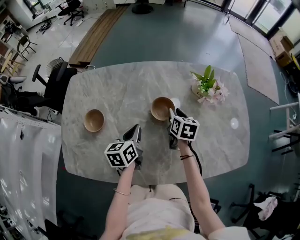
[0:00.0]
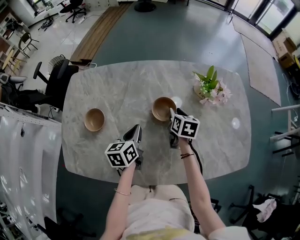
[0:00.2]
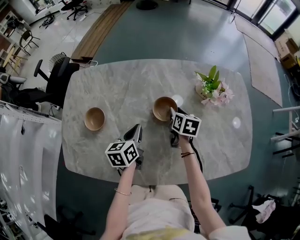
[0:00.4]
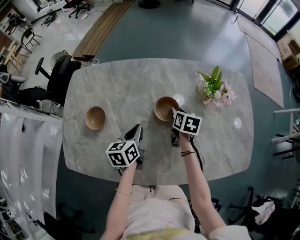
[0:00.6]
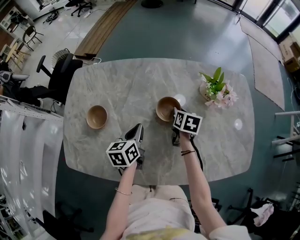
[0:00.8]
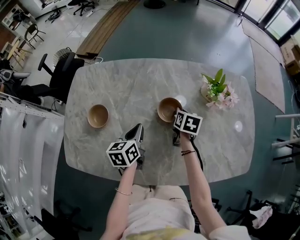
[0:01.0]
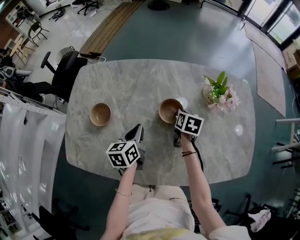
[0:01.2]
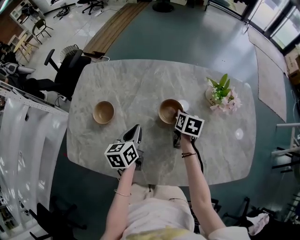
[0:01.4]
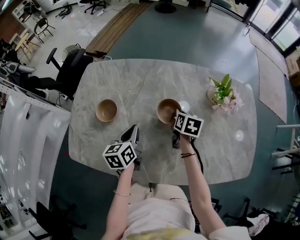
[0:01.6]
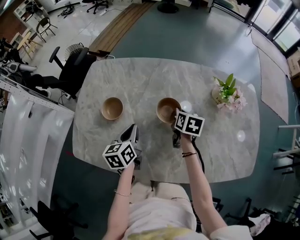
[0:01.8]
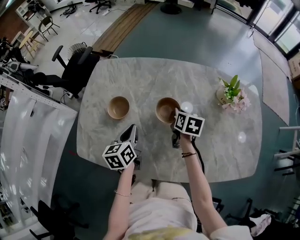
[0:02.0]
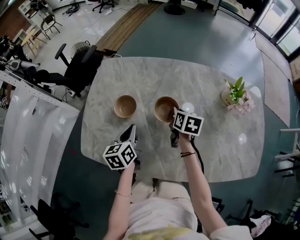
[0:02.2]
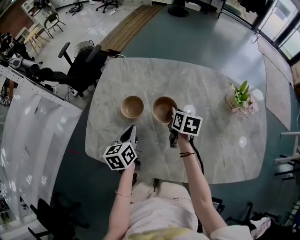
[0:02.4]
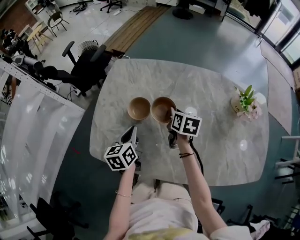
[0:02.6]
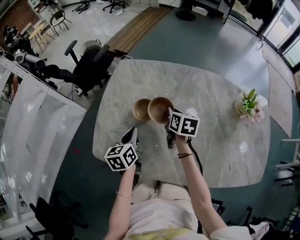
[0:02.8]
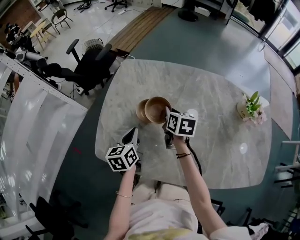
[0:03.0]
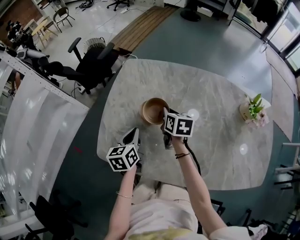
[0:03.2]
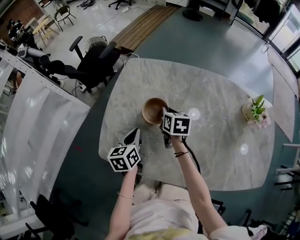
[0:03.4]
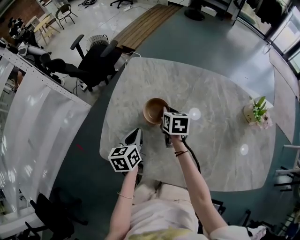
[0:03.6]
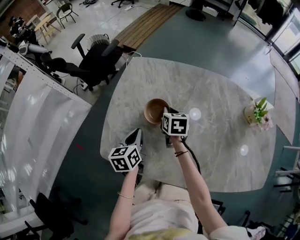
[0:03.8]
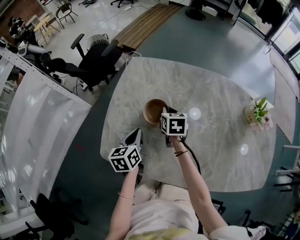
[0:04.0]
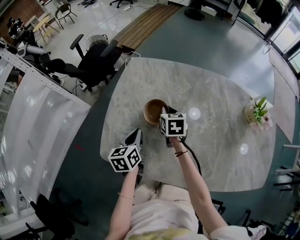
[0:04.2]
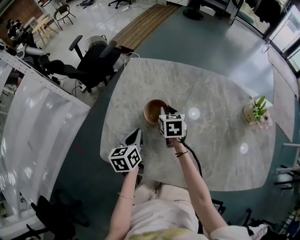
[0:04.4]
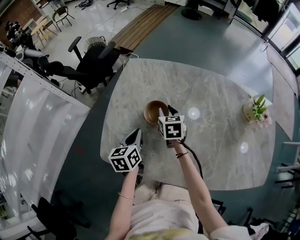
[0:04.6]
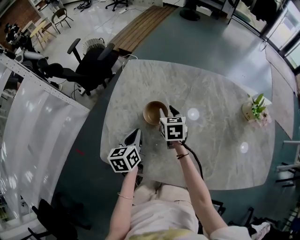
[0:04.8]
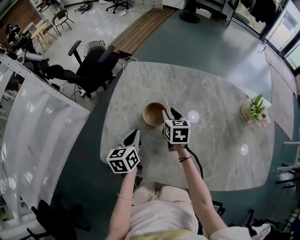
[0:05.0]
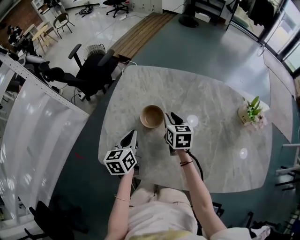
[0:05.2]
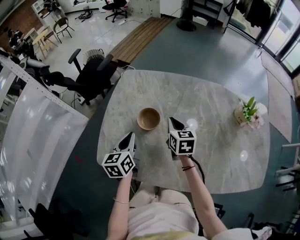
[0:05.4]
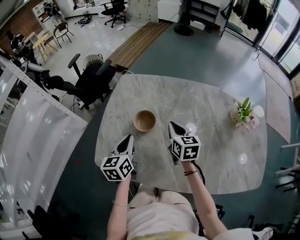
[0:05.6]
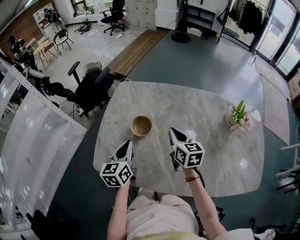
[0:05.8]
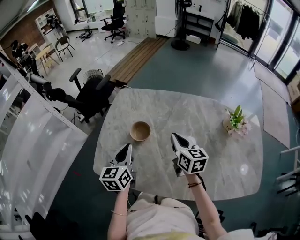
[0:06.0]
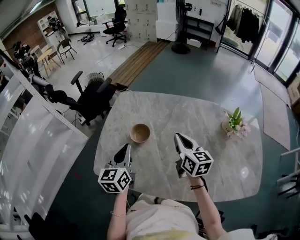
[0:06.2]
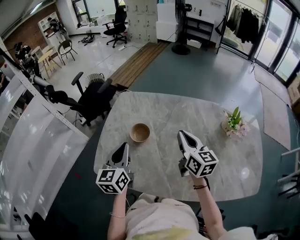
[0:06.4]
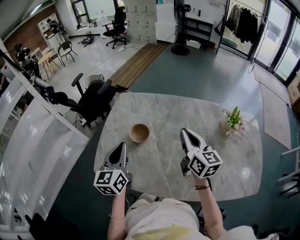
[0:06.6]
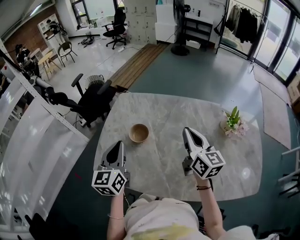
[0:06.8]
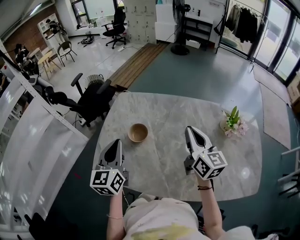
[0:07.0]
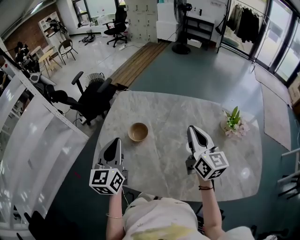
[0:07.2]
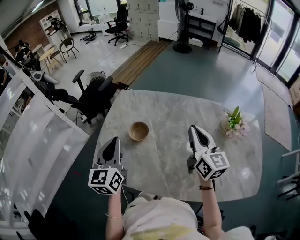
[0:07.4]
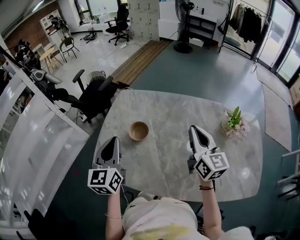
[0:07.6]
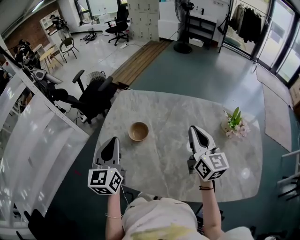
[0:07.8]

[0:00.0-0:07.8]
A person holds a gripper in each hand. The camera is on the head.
0:00.0 to 0:01.6: The right gripper closes. The left gripper moves to the left, approximately 5 cm.
0:01.6 to 0:03.2: Both grippers move to the left, approximately 25 cm.
0:03.2 to 0:04.6: The right gripper opens.
0:04.6 to 0:06.2: The right gripper travels upward, to the right and backward by about 25 cm, turns by some 30 degrees, and closes. Meanwhile the left gripper moves upward, some 15 cm, and rotates some 20 degrees.
0:06.2 to 0:07.8: The right gripper shifts approximately 10 cm upward and to the right; the left gripper goes roughly 10 cm upward.

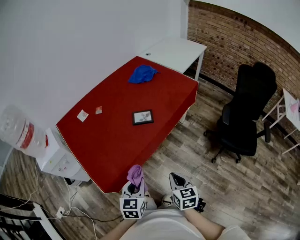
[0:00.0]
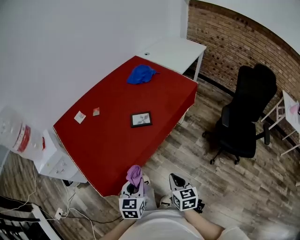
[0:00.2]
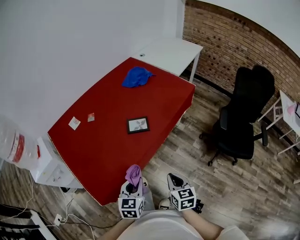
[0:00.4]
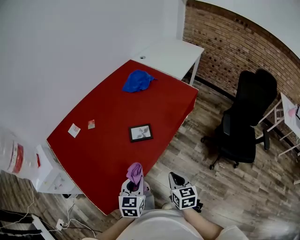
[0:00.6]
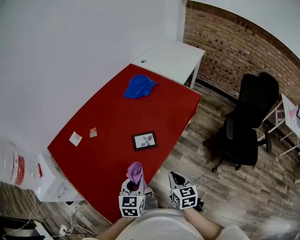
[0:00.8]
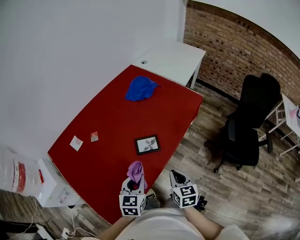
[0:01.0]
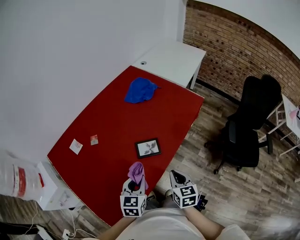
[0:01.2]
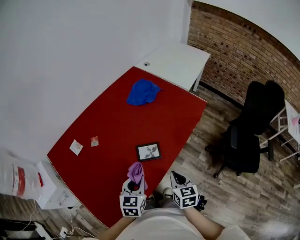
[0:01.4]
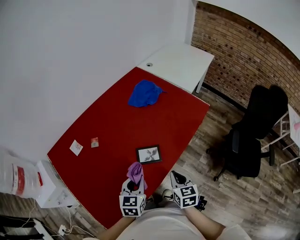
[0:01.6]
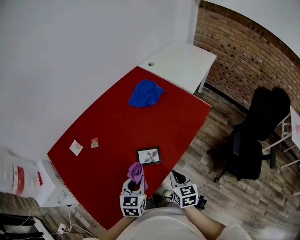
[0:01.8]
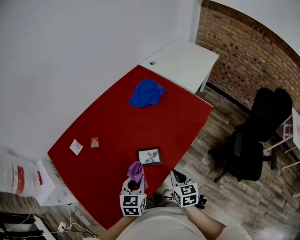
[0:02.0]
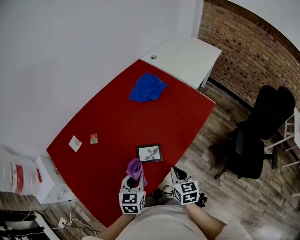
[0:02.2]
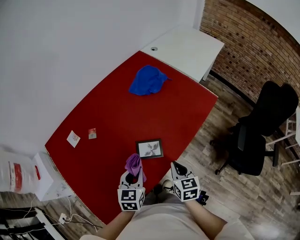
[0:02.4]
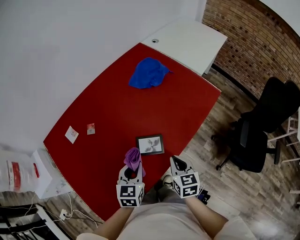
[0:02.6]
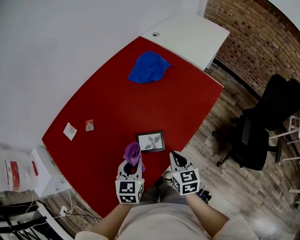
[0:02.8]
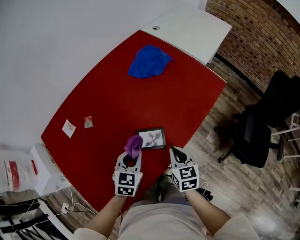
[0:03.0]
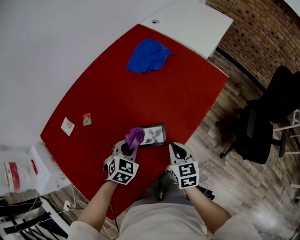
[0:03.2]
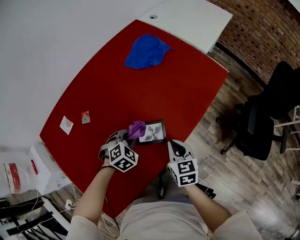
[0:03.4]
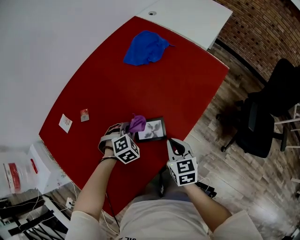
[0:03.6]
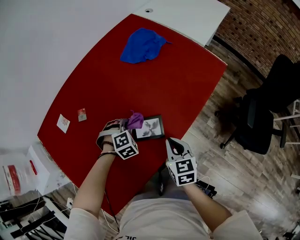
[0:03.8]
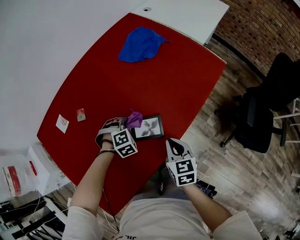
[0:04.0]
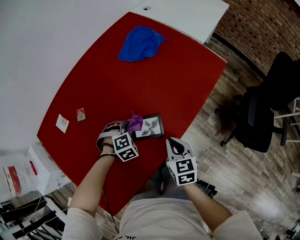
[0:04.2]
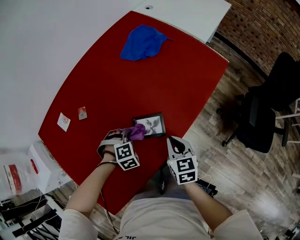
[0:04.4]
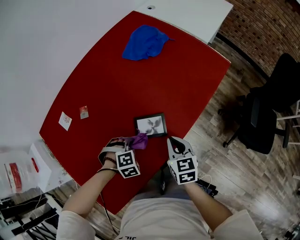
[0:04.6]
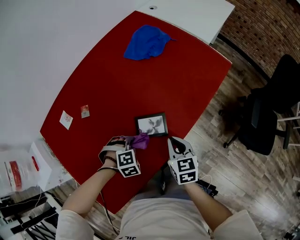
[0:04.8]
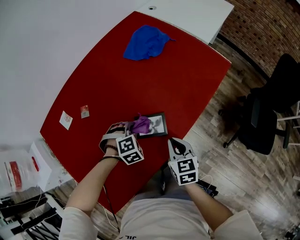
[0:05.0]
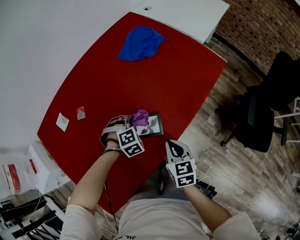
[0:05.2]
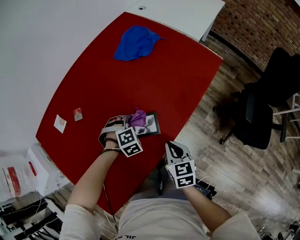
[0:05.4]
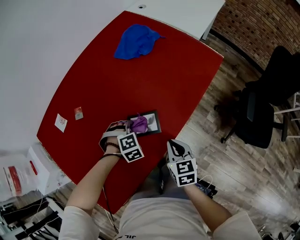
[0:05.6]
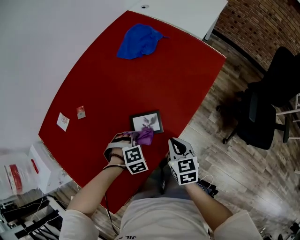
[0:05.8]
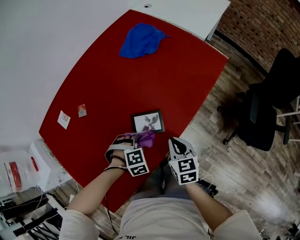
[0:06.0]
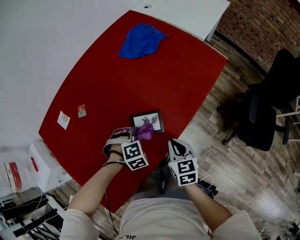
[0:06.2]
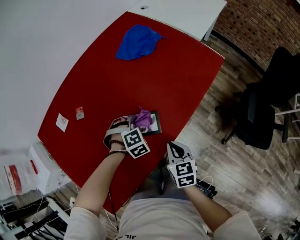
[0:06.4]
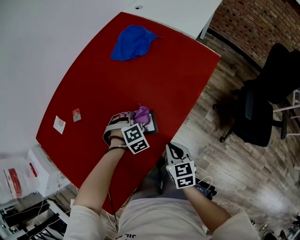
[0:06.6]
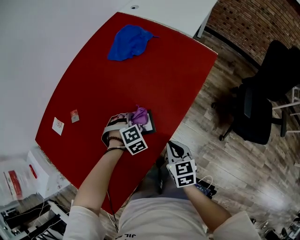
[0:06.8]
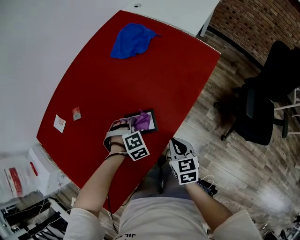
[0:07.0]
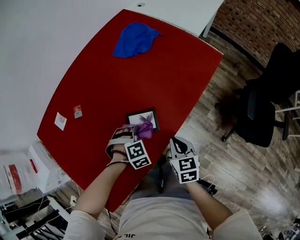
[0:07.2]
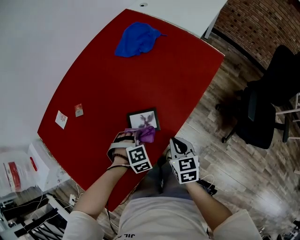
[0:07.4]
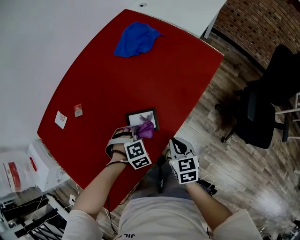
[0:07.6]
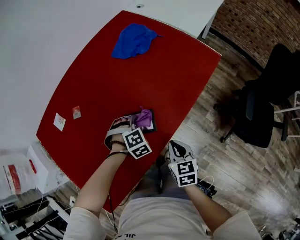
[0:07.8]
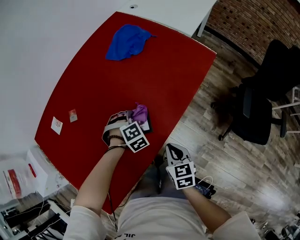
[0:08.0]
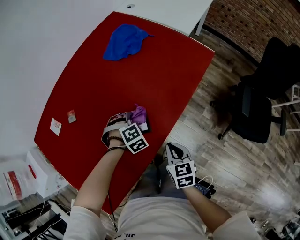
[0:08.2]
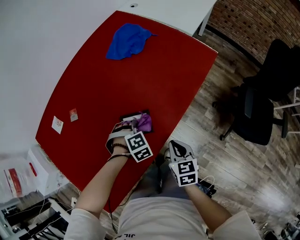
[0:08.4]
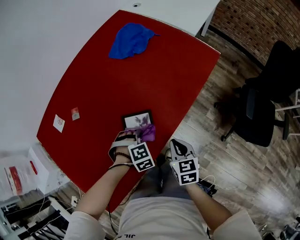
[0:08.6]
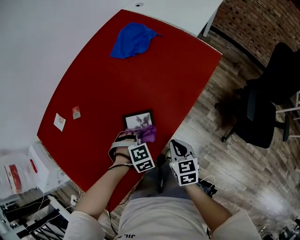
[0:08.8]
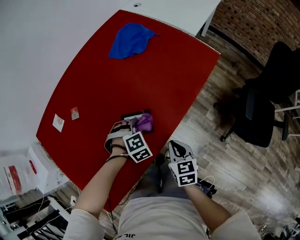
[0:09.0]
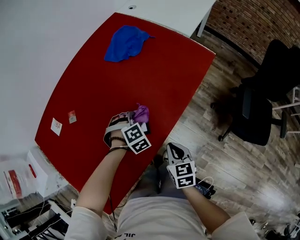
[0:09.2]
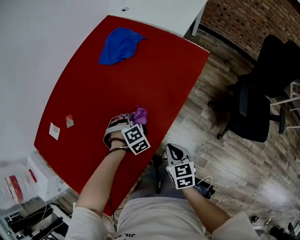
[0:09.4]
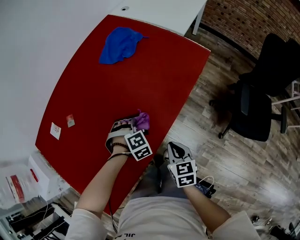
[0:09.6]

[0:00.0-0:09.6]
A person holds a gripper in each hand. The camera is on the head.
0:00.0 to 0:01.6: Both grippers travel together forward, about 30 cm.
0:01.6 to 0:03.2: The grippers both shift forward and downward by approximately 15 cm. The left gripper rotates about 40 degrees.
0:03.2 to 0:04.8: The left gripper goes roughly 10 cm downward, and rotates approximately 50 degrees.
0:04.8 to 0:06.4: The left gripper moves some 10 cm.
0:06.4 to 0:08.0: The left gripper travels backward and back again, some 10 cm each way.

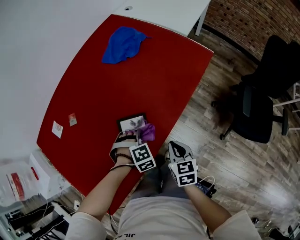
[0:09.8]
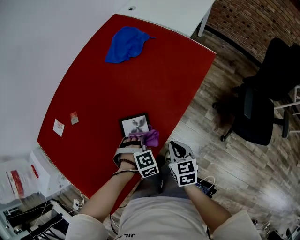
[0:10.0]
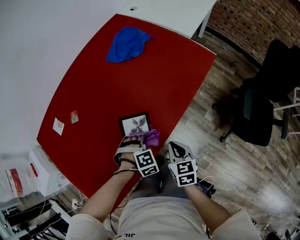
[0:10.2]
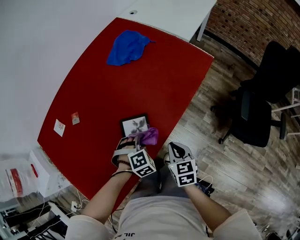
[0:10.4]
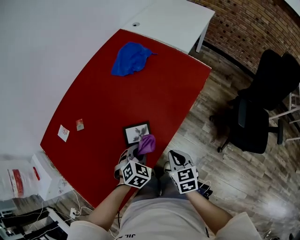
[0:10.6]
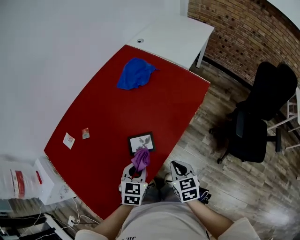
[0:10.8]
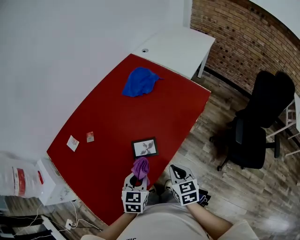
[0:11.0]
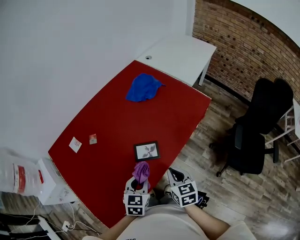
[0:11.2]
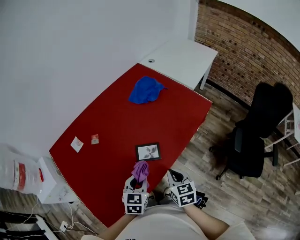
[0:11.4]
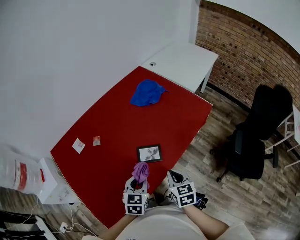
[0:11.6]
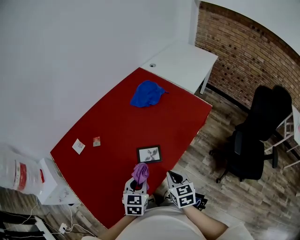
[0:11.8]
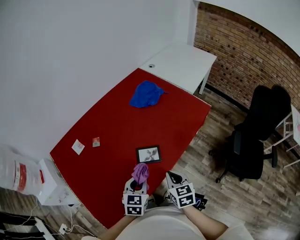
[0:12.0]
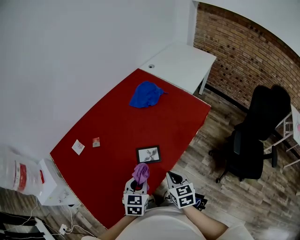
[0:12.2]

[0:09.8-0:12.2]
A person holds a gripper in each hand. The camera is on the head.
0:09.8 to 0:11.0: The left gripper is displaced upward and backward by approximately 20 cm, and twists some 70 degrees counterclockwise, seen from behind. The right gripper goes about 10 cm upward.
0:11.0 to 0:12.2: The grippers move only a little.

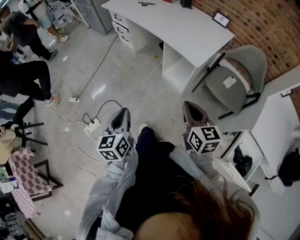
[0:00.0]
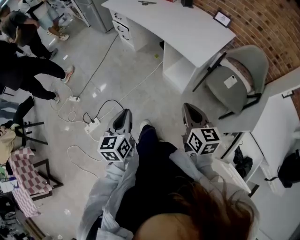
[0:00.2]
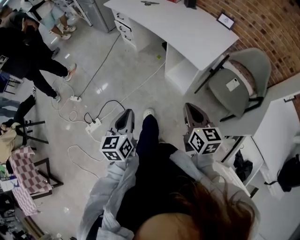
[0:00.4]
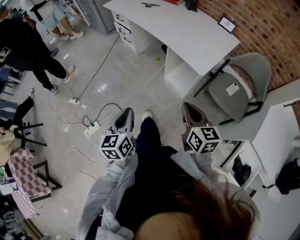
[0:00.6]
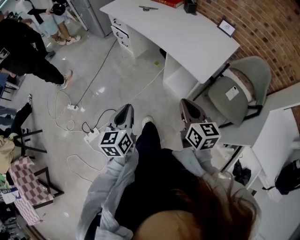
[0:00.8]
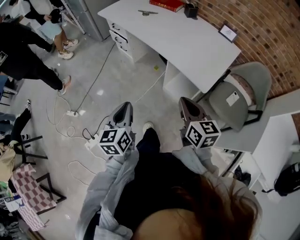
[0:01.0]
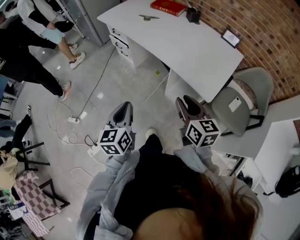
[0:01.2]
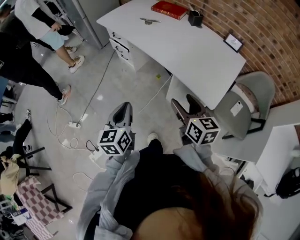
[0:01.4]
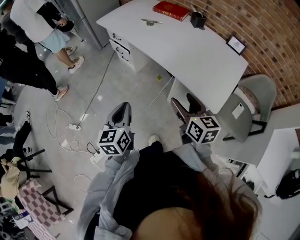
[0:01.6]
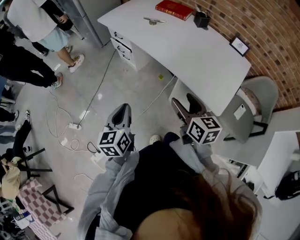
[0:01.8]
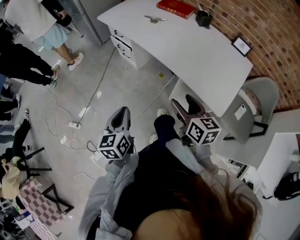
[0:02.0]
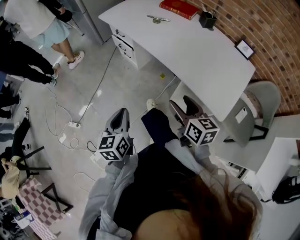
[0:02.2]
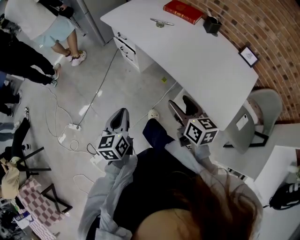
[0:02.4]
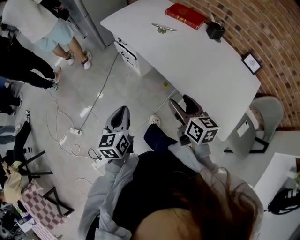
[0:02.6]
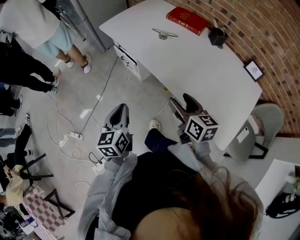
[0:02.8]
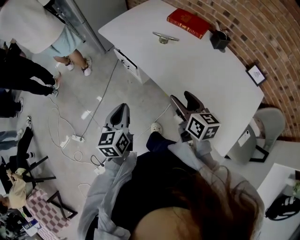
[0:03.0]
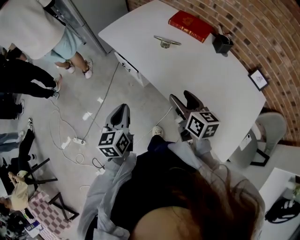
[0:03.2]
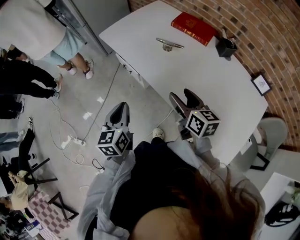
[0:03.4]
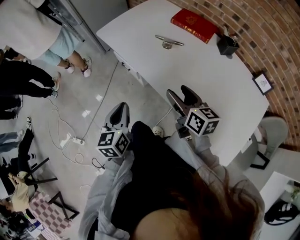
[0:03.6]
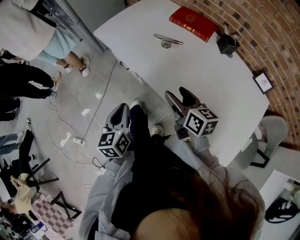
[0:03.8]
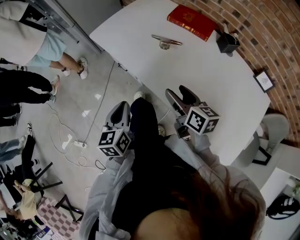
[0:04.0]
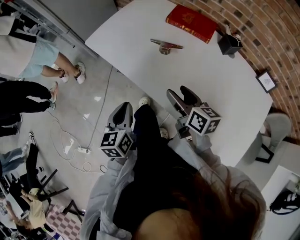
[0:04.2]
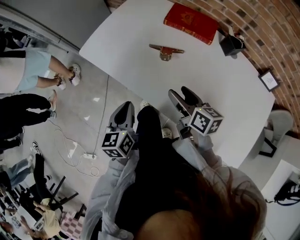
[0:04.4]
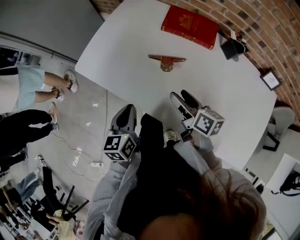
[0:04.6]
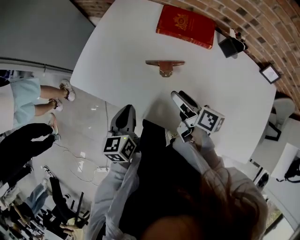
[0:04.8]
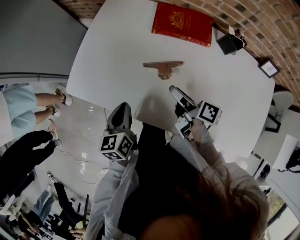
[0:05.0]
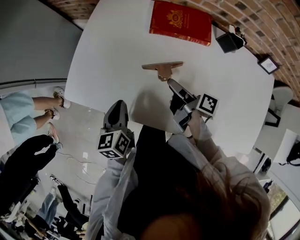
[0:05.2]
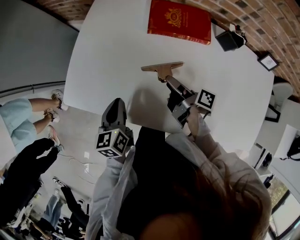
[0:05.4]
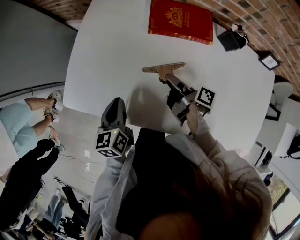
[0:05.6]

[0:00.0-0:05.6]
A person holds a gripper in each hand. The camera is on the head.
0:00.0 to 0:01.4: The two grippers go approximately 30 cm forward. The right gripper opens up.
0:01.4 to 0:02.8: The grippers both shift forward by about 25 cm.
0:02.8 to 0:04.2: The grippers both shift forward by about 20 cm.
0:04.2 to 0:05.6: The left gripper shifts some 30 cm forward, and rotates approximately 20 degrees, while the right gripper moves forward and downward, approximately 25 cm, and rotates around the line of its fingers by approximately 60 degrees, clockwise from behind.
